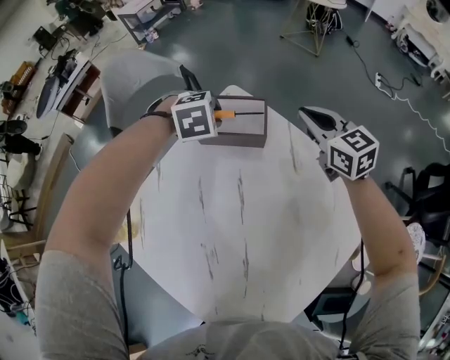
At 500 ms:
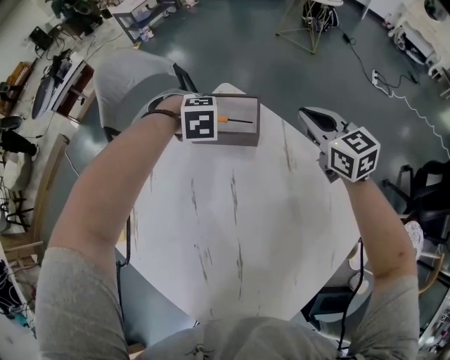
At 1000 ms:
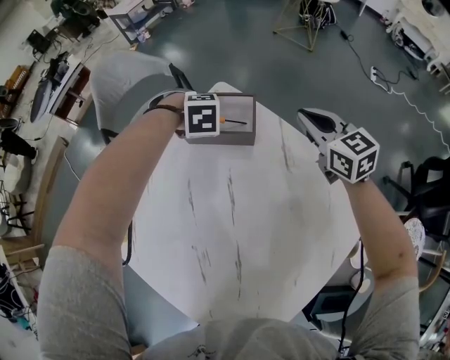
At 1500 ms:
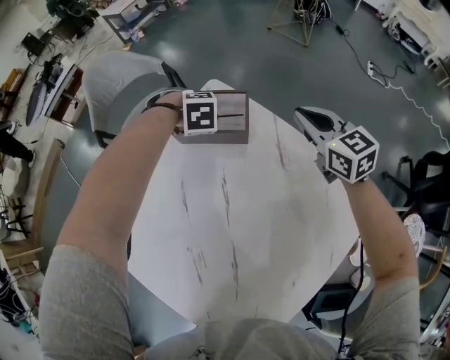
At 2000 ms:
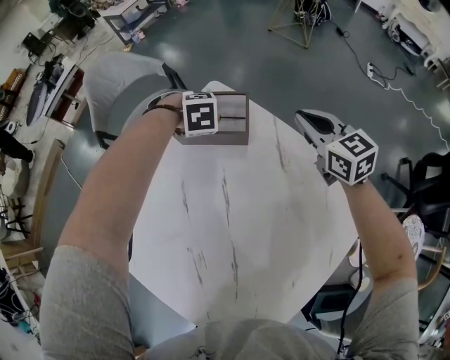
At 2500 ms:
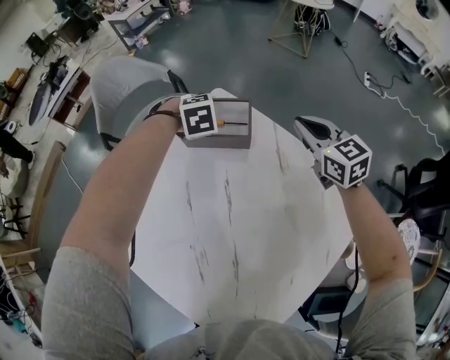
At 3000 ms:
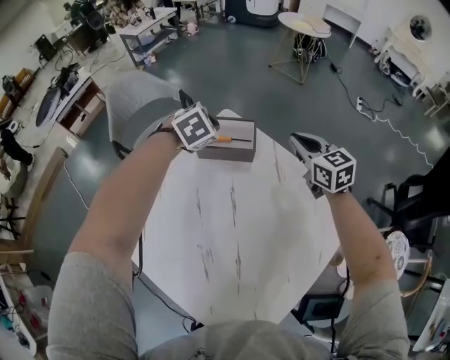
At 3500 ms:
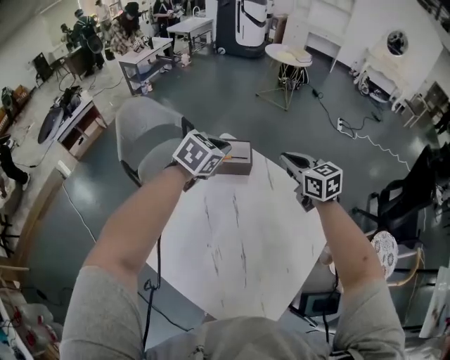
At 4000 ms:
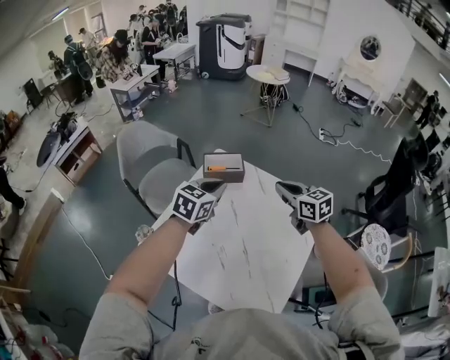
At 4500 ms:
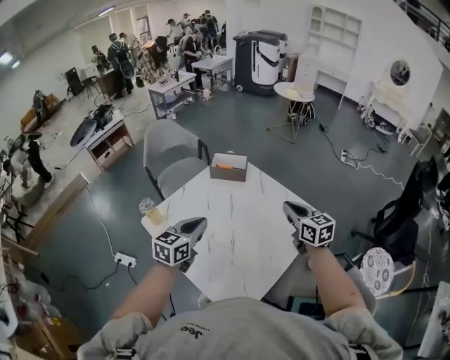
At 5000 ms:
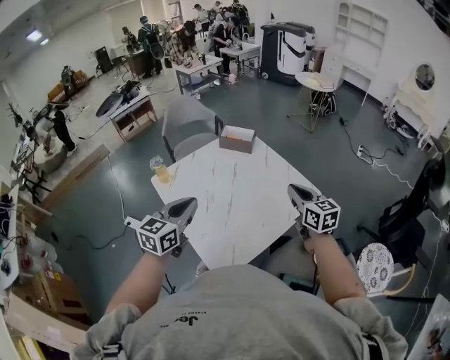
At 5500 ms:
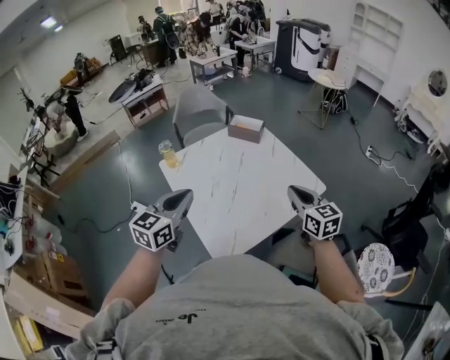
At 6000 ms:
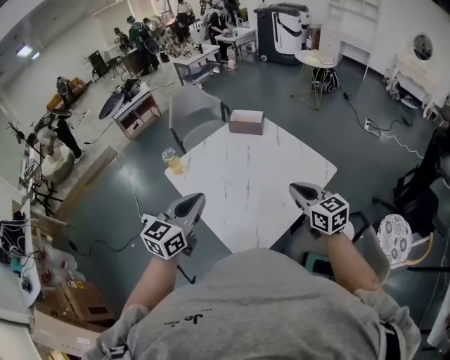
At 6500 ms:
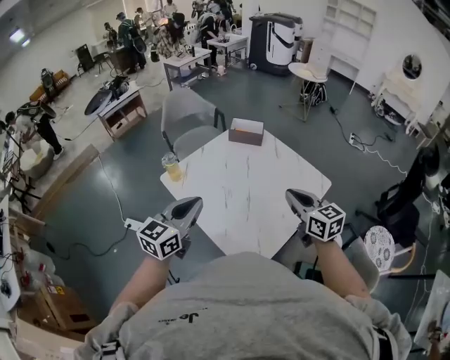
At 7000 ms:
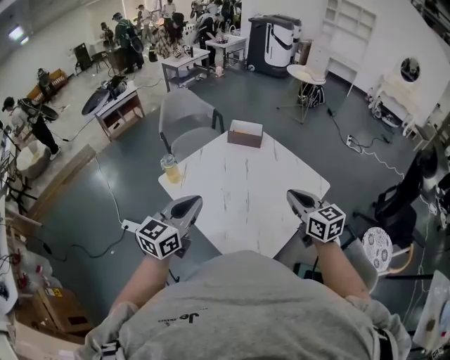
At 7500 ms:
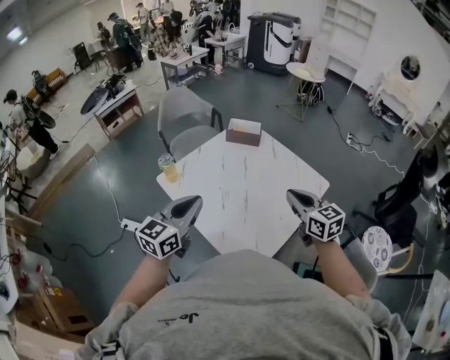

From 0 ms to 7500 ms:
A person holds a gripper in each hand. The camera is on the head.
From 0 ms to 2000 ms: The left gripper moves downward, approximately 10 cm.
From 2000 ms to 4000 ms: The right gripper ends up some 25 cm from where it was, while the left gripper heads upward, covering about 30 cm, angles its fingers upward, by some 60 degrees, and closes up.
From 4000 ms to 5500 ms: The grippers both shift backward by about 30 cm. The left gripper rotates about 40 degrees.
From 5500 ms to 7500 ms: The right gripper moves to the left, approximately 10 cm, while the left gripper shifts approximately 10 cm to the left and forward.

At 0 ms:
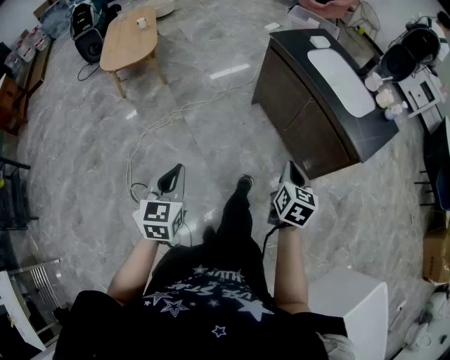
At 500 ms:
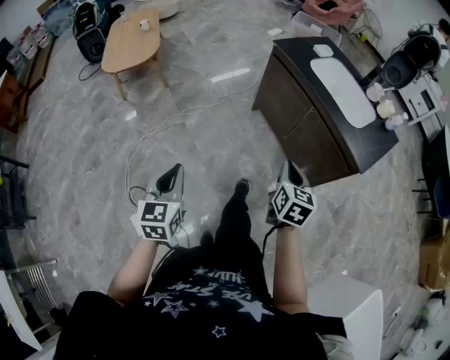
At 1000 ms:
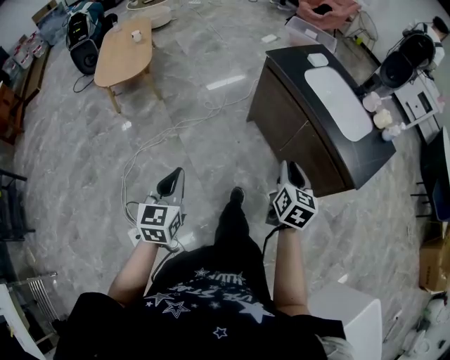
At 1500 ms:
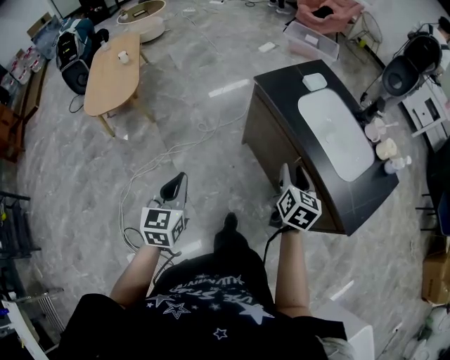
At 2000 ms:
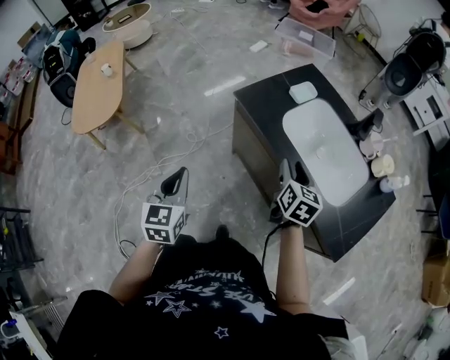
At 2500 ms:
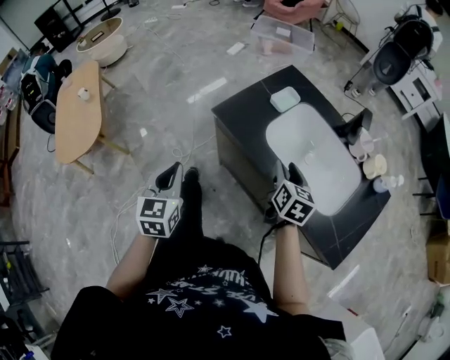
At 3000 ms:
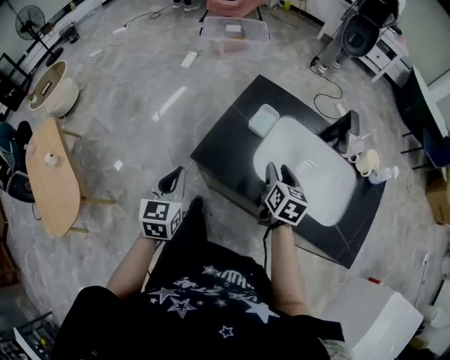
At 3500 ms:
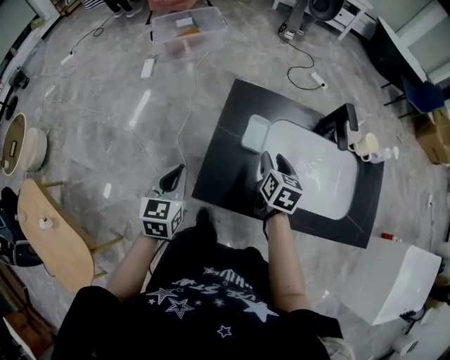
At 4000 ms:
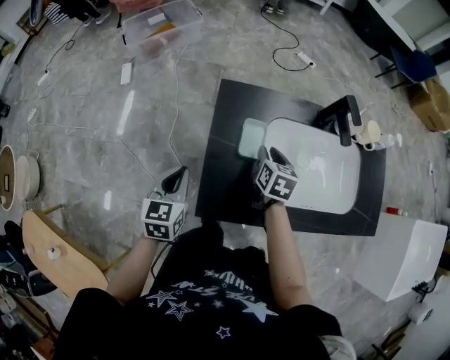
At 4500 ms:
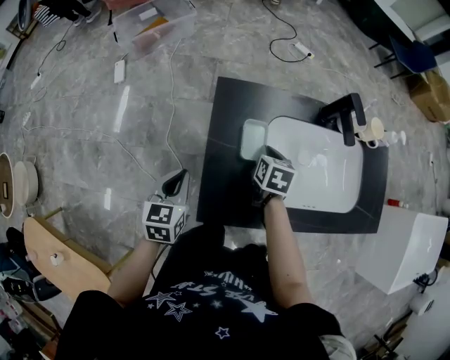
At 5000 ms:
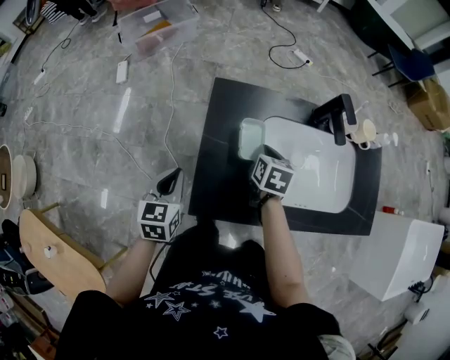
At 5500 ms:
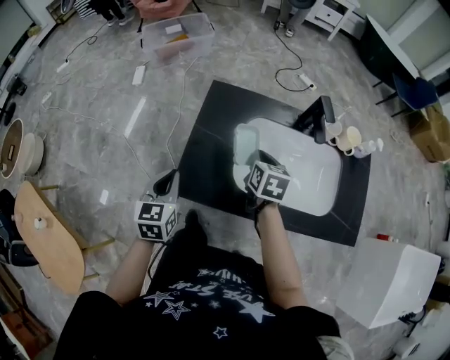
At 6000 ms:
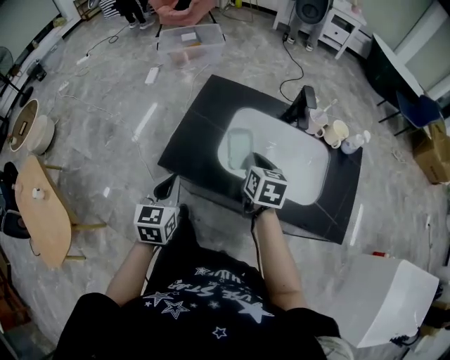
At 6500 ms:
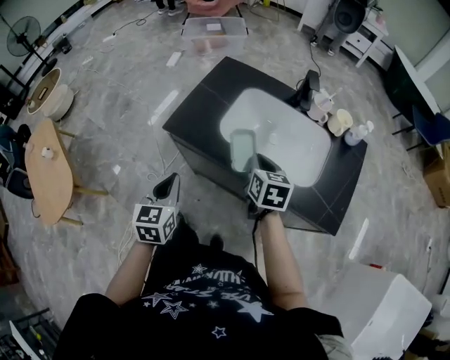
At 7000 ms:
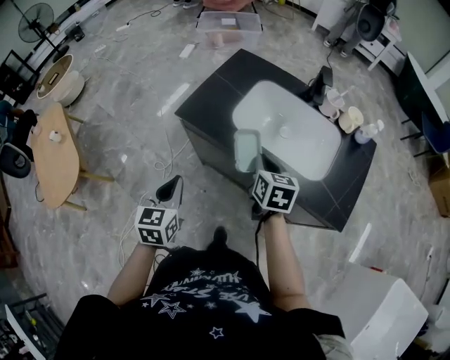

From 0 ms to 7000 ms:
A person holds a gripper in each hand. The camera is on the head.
From 0 ms to 2000 ms: The two grippers travel together, forward, about 50 cm. The right gripper opens up.
From 2000 ms to 3500 ms: The left gripper shifts by approximately 50 cm, and rotates some 40 degrees. The right gripper shifts by roughly 30 cm, and changes its angle by roughly 40 degrees.
From 3500 ms to 5000 ms: The left gripper shifts some 5 cm forward. The right gripper changes place by about 5 cm, and closes up.
From 5000 ms to 7000 ms: The right gripper shifts by about 30 cm, and rotates about 40 degrees, while the left gripper shifts by approximately 40 cm, and swivels some 30 degrees.

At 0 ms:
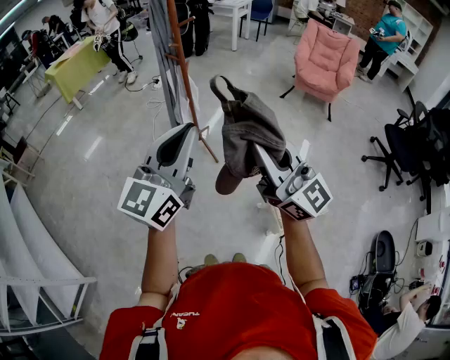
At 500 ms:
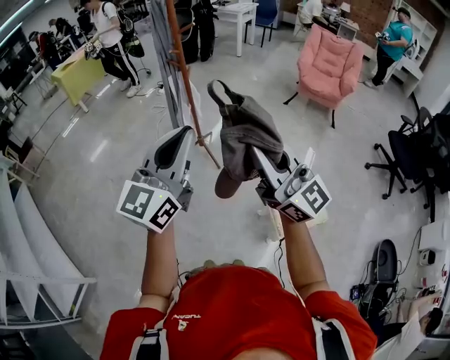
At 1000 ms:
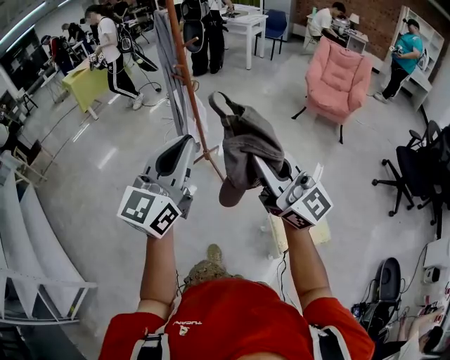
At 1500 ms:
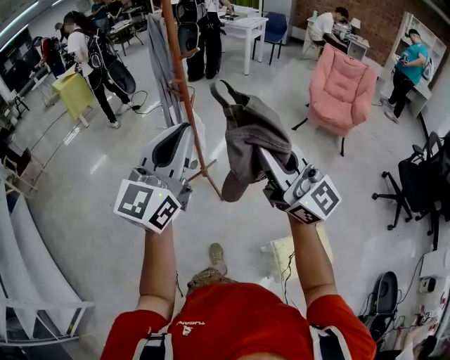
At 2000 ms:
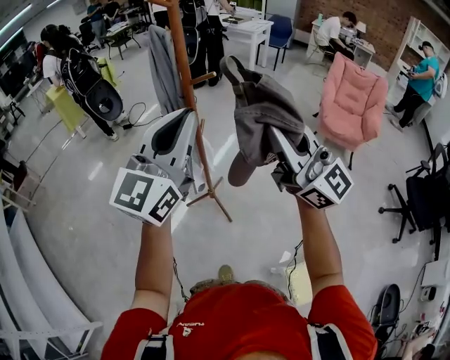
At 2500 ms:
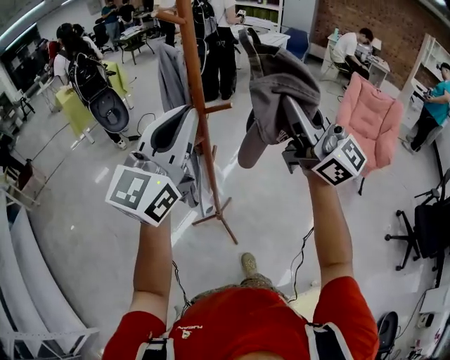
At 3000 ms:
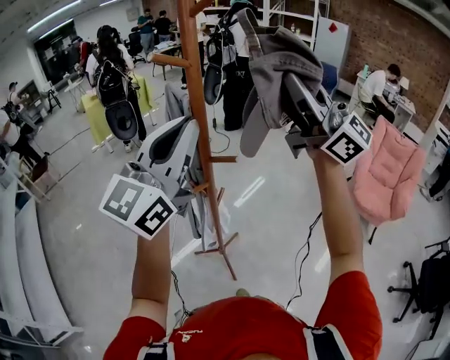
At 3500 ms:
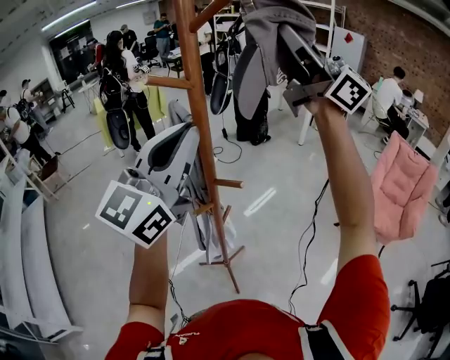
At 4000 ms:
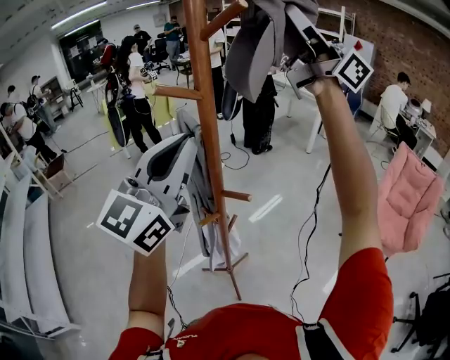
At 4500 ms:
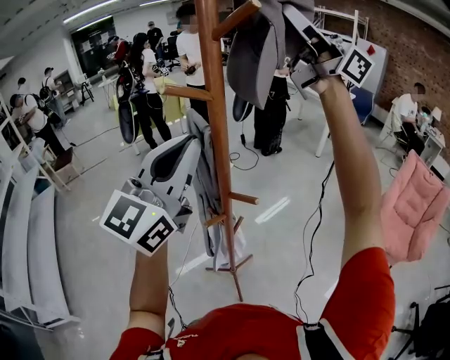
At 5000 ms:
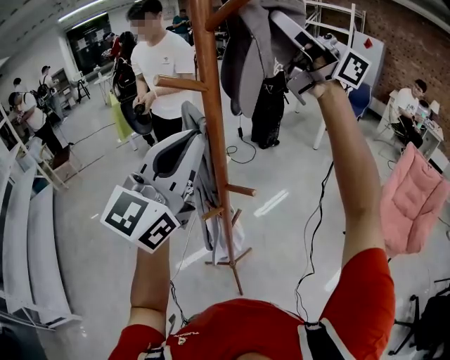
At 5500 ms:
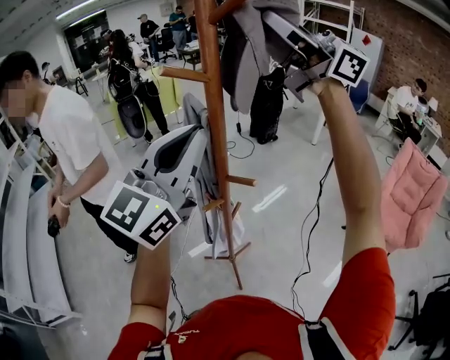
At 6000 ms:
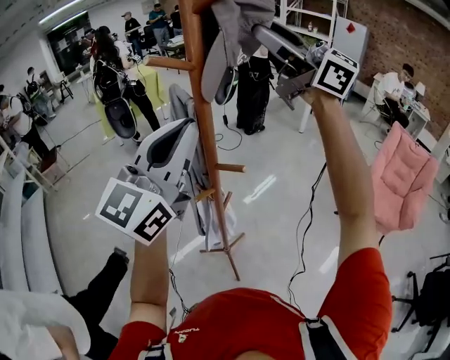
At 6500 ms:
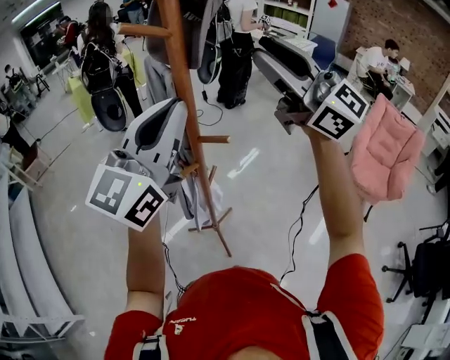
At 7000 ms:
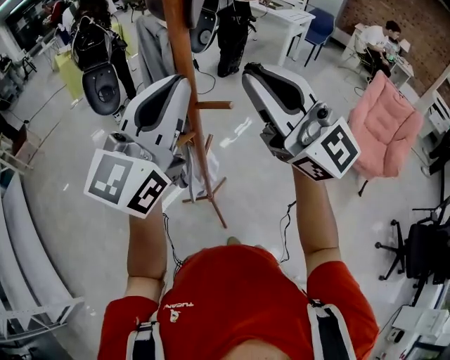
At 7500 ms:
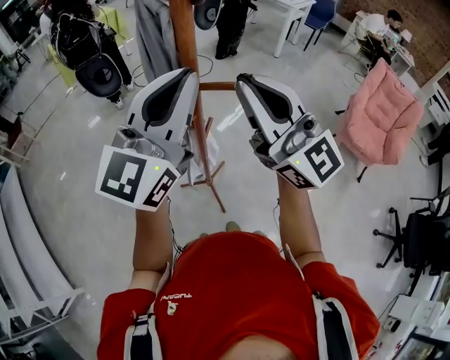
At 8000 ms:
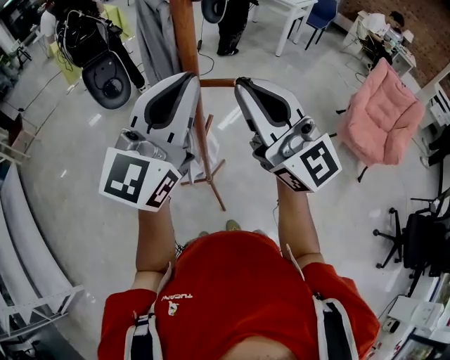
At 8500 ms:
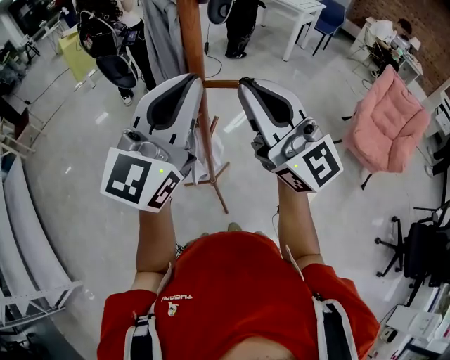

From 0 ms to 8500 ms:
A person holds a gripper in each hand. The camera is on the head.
From 0 ms to 2000 ms: Both grippers travel together forward, about 40 cm.
From 2000 ms to 4000 ms: The right gripper shifts by some 50 cm, and turns by some 50 degrees, while the left gripper moves roughly 25 cm.
From 4000 ms to 6500 ms: The left gripper ends up about 5 cm from where it was; the right gripper travels downward by approximately 20 cm, swivels approximately 40 degrees, and opens.
From 6500 ms to 8500 ms: The right gripper shifts approximately 15 cm downward, backward and to the left, and closes; the left gripper goes about 5 cm downward.

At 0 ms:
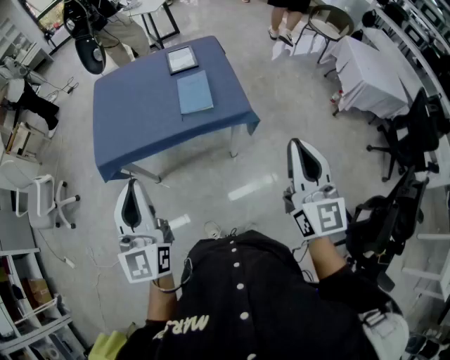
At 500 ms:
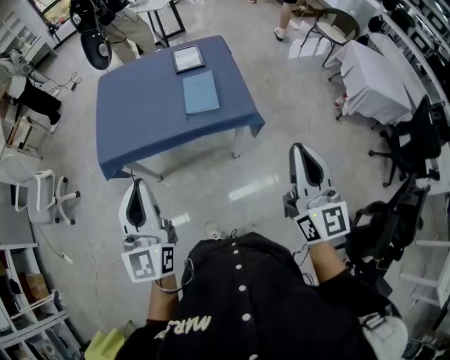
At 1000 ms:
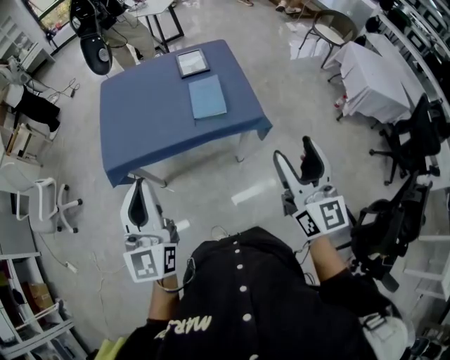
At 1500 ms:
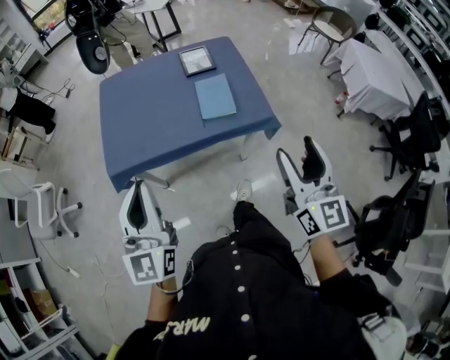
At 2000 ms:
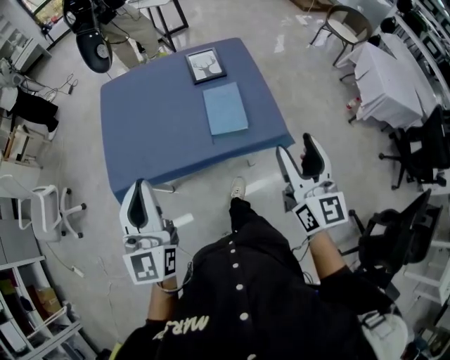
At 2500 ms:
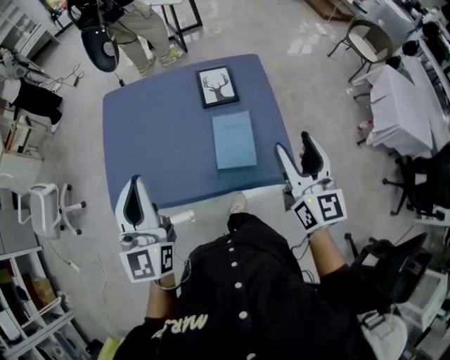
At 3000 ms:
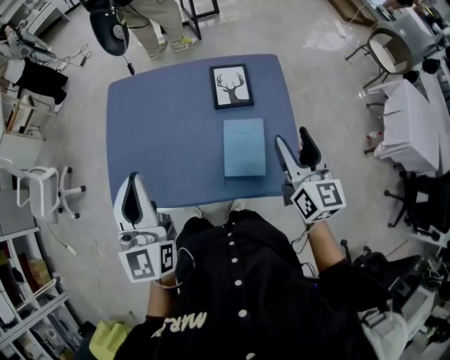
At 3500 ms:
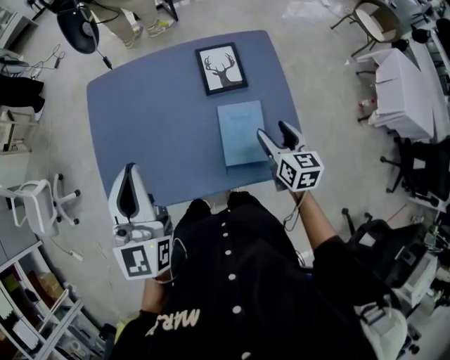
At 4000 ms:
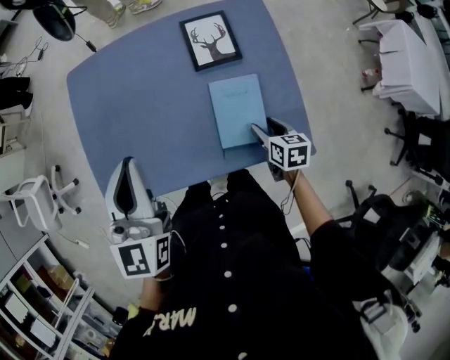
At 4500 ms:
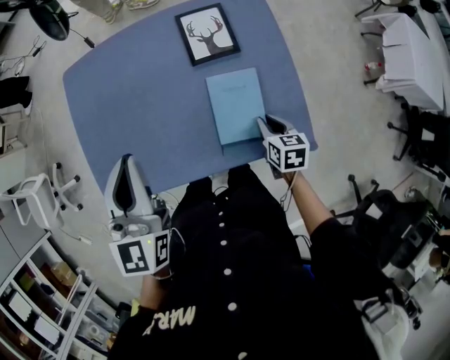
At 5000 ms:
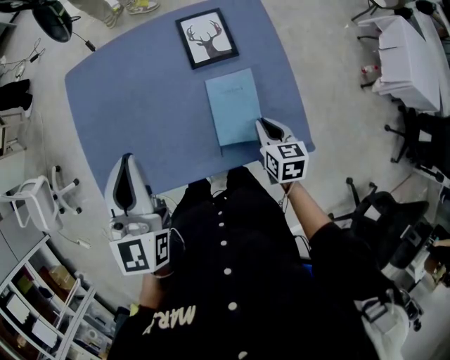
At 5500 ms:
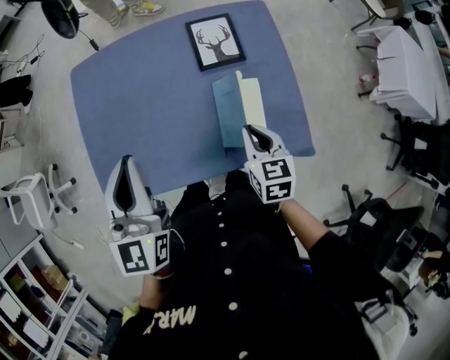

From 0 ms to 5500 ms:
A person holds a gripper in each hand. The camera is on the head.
From 0 ms to 2000 ms: The two grippers go about 25 cm forward and to the left. The right gripper opens its fingers.
From 2000 ms to 3500 ms: The left gripper heads forward, covering about 30 cm. Meanwhile the right gripper travels forward and downward by about 40 cm, and tips its fingers downward by some 30 degrees.
From 3500 ms to 5500 ms: The right gripper travels to the left by roughly 10 cm, travels downward and back again, some 15 cm each way, and closes.
